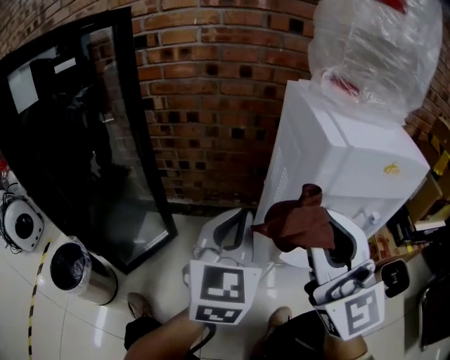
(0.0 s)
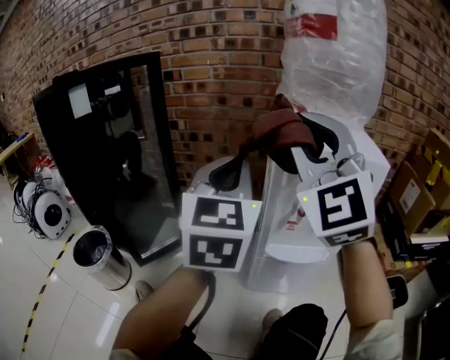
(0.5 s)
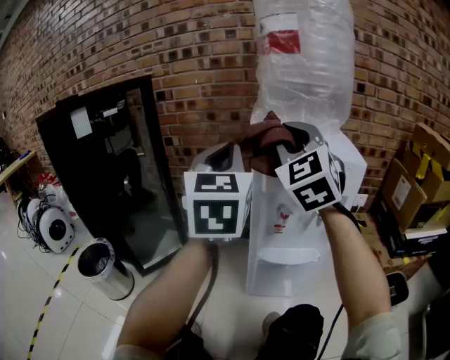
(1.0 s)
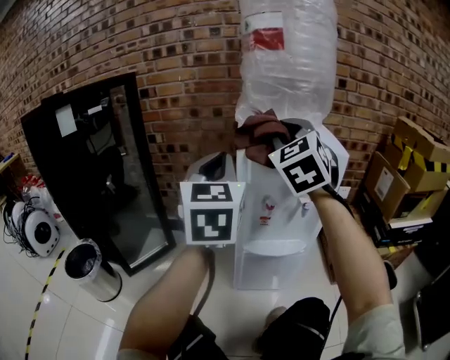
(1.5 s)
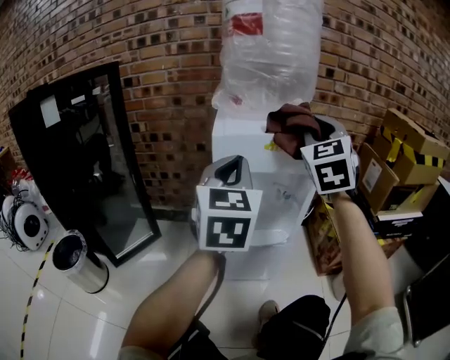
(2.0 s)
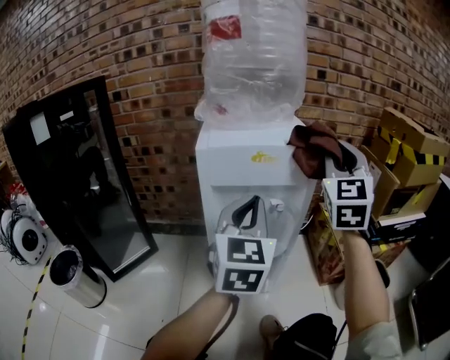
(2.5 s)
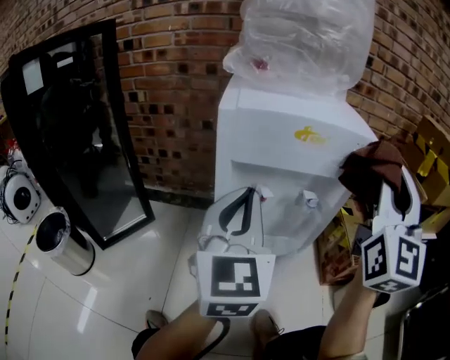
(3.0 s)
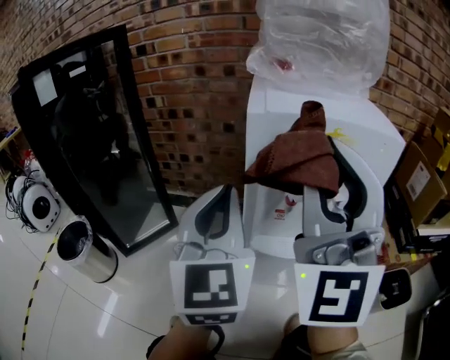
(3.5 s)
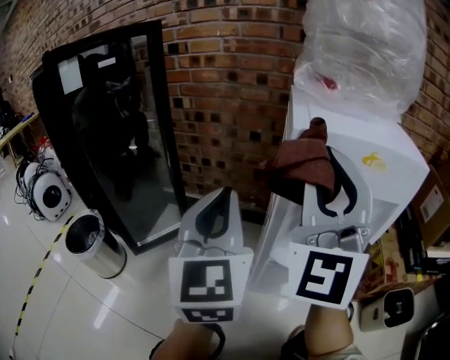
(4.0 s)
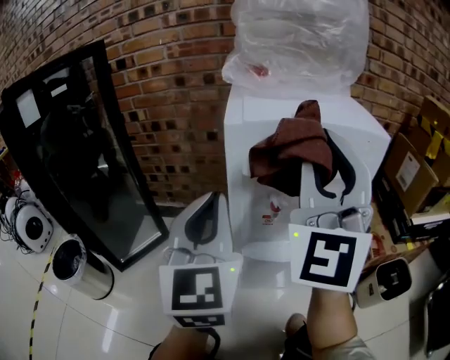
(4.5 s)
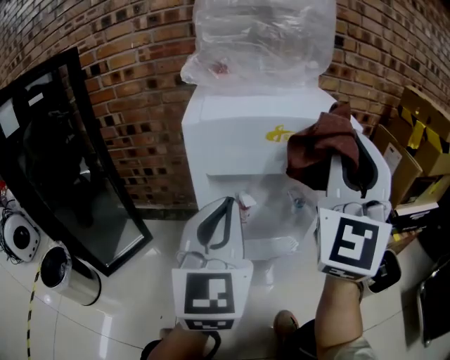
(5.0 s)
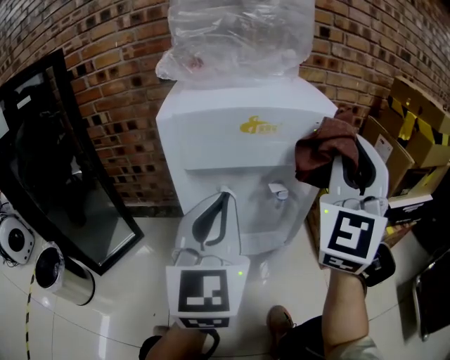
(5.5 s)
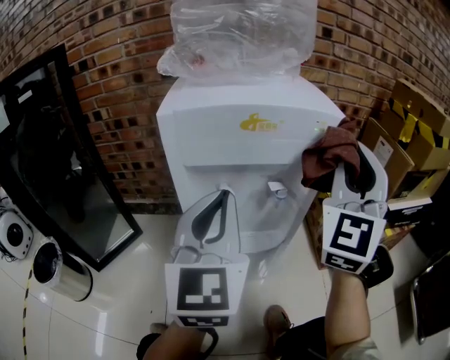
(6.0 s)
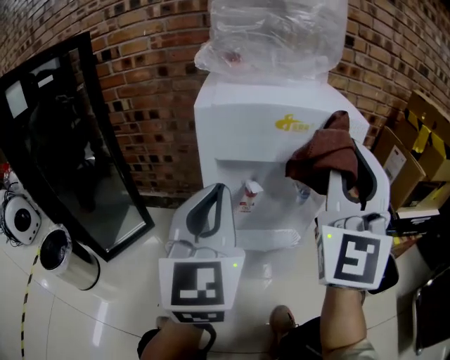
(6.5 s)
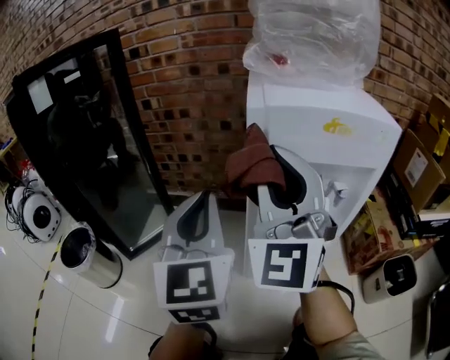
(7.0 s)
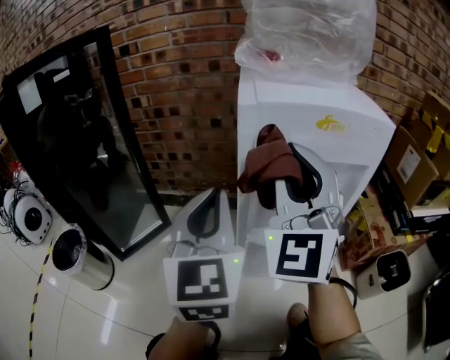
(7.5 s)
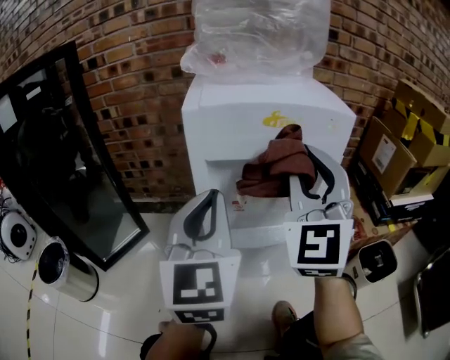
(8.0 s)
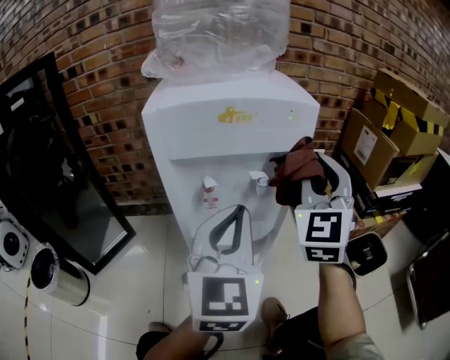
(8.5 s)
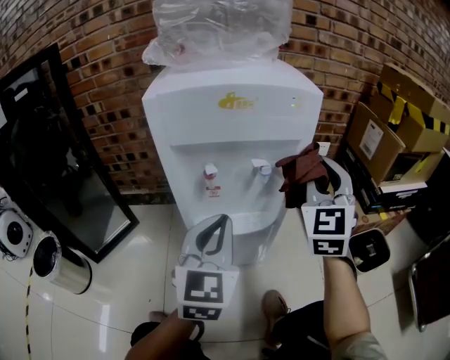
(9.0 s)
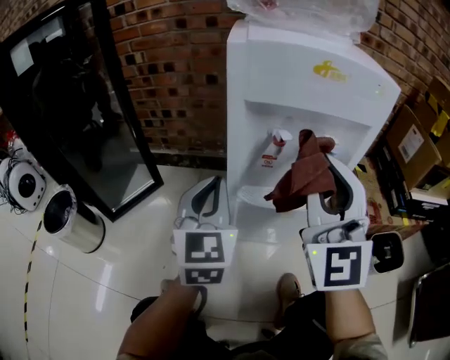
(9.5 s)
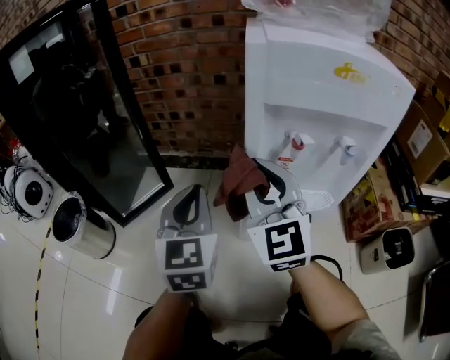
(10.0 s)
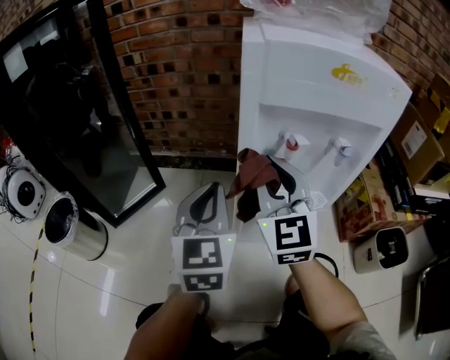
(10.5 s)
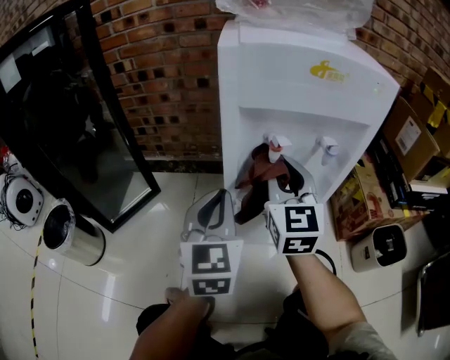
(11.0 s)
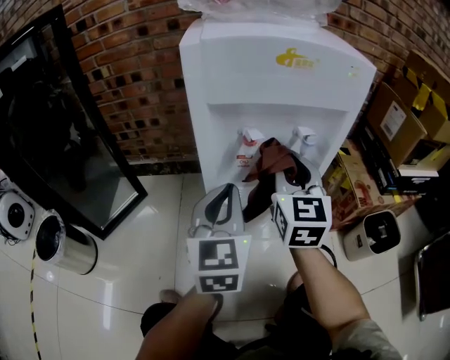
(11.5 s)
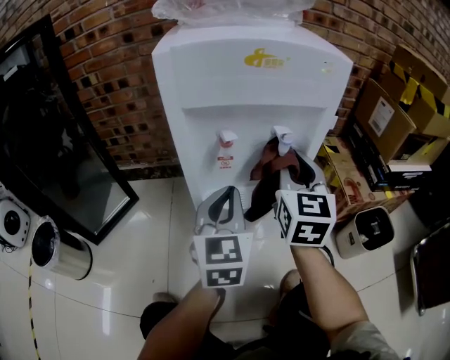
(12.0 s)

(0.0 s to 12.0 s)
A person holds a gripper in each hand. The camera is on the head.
0.0 s - 2.0 s: The right gripper goes approximately 25 cm to the right and upward, and rotates some 30 degrees. Meanwhile the left gripper travels upward, to the right and backward by some 20 cm.
2.0 s - 4.0 s: The left gripper shifts roughly 15 cm to the left and downward. The right gripper is displaced to the left by some 20 cm, and swivels roughly 30 degrees.
4.0 s - 6.0 s: Both grippers travel together to the right, approximately 20 cm. The right gripper swivels approximately 30 degrees.
6.0 s - 8.0 s: The left gripper goes to the left and returns, some 15 cm each way. Meanwhile the right gripper goes approximately 15 cm to the left.
8.0 s - 10.0 s: The right gripper ends up some 20 cm from where it was, and rotates roughly 30 degrees; the left gripper travels downward by some 15 cm.
10.0 s - 12.0 s: The grippers both shift to the right by some 20 cm. The right gripper changes its angle by some 30 degrees.

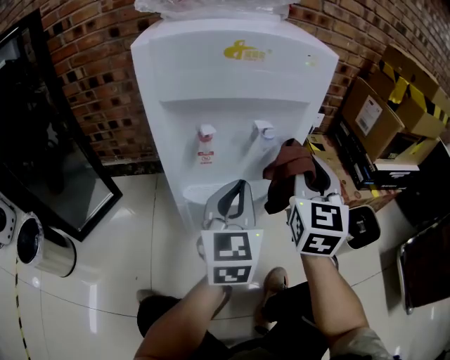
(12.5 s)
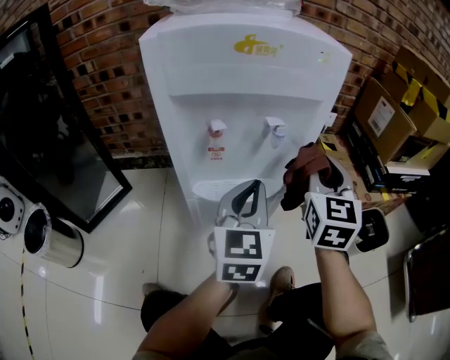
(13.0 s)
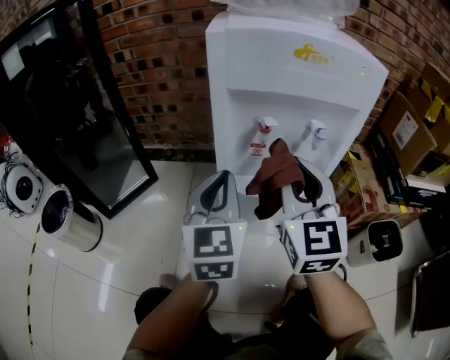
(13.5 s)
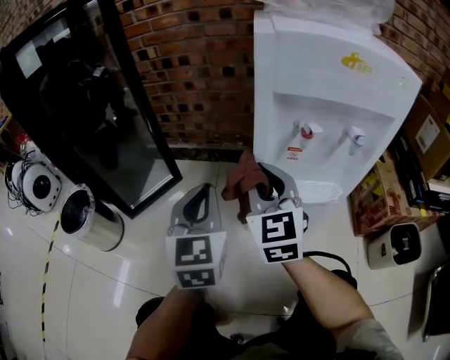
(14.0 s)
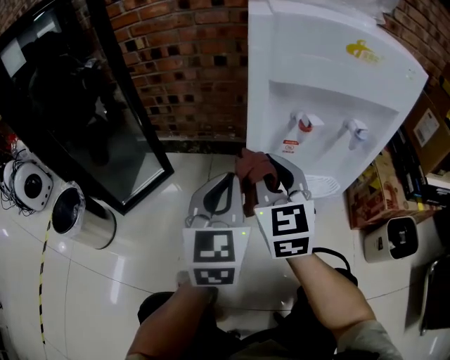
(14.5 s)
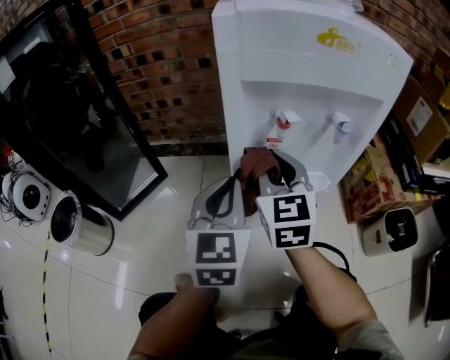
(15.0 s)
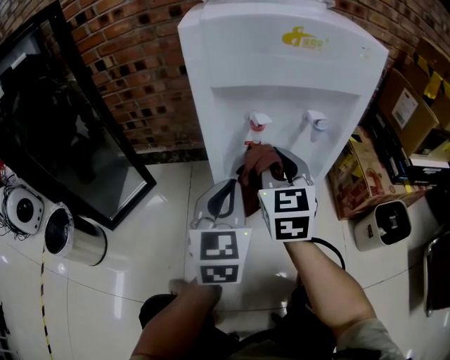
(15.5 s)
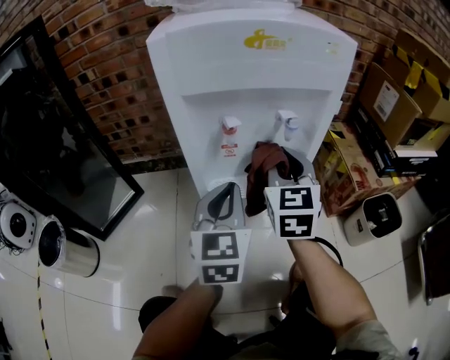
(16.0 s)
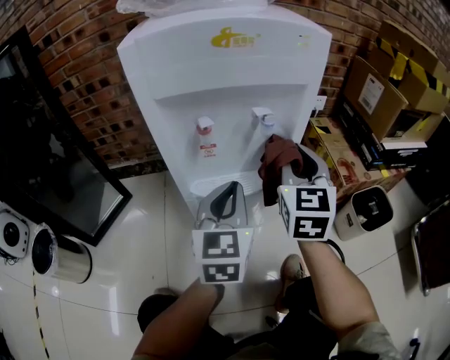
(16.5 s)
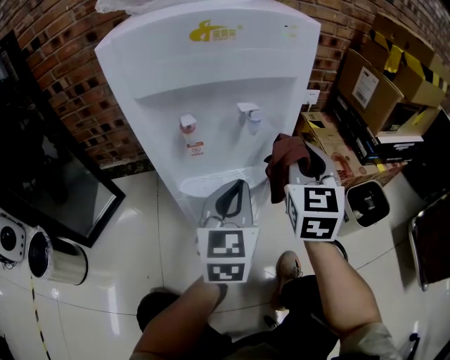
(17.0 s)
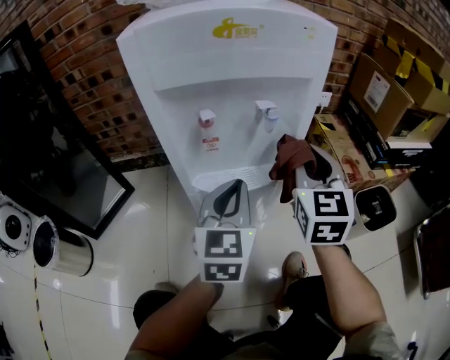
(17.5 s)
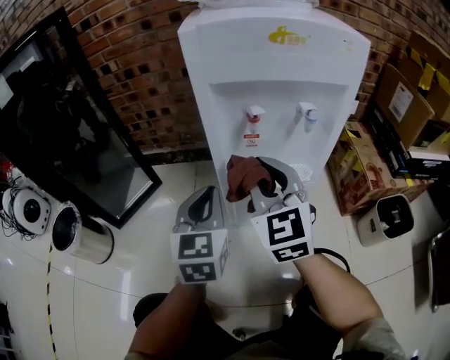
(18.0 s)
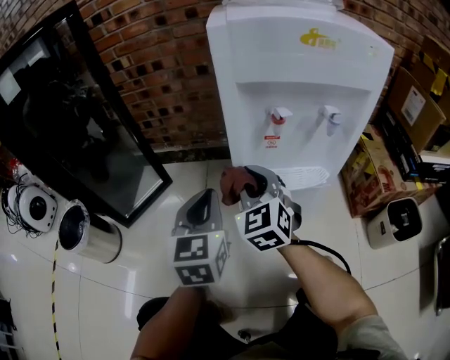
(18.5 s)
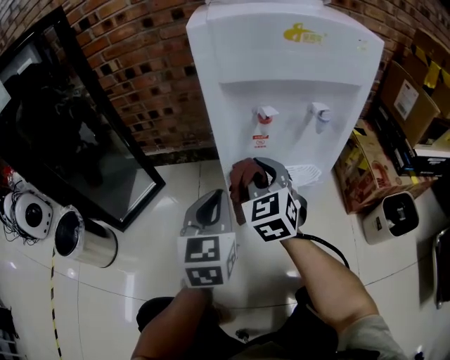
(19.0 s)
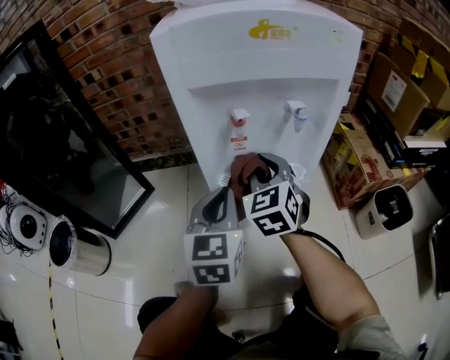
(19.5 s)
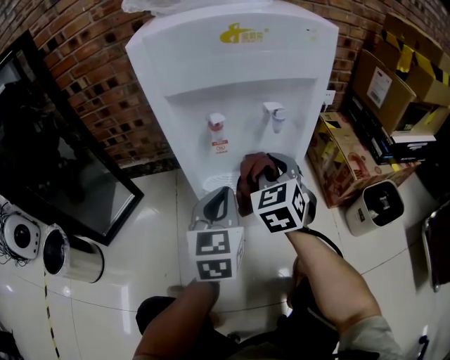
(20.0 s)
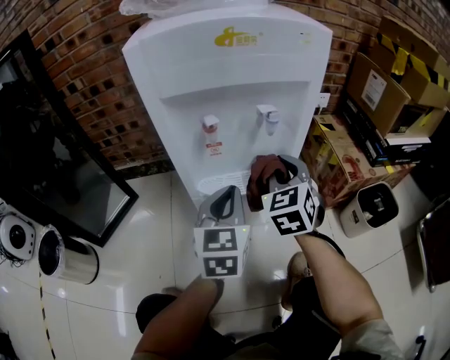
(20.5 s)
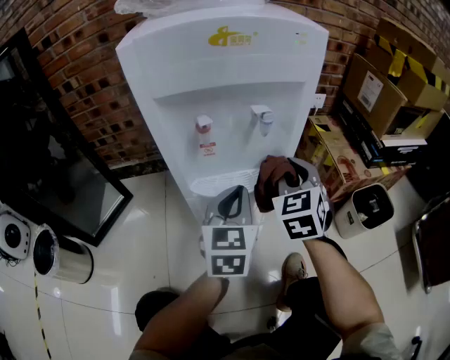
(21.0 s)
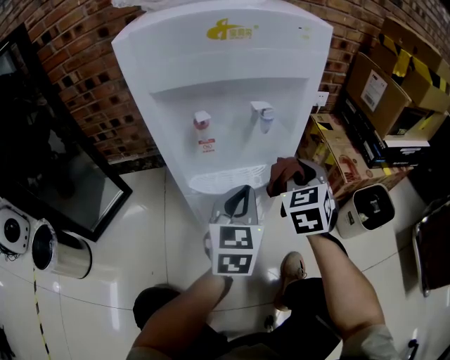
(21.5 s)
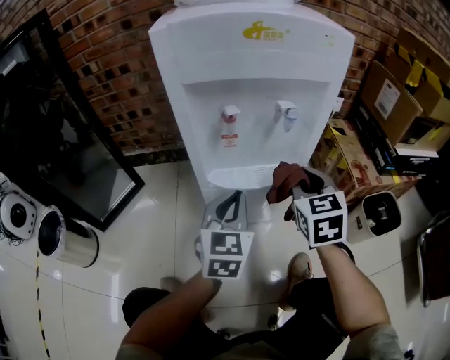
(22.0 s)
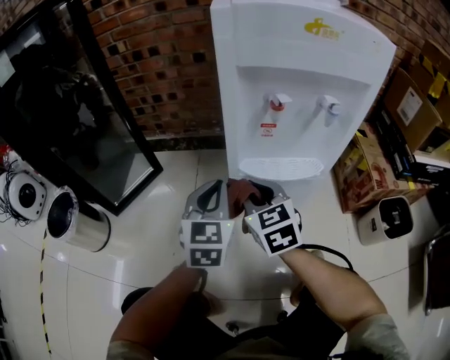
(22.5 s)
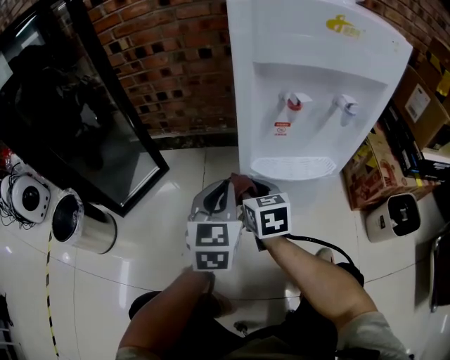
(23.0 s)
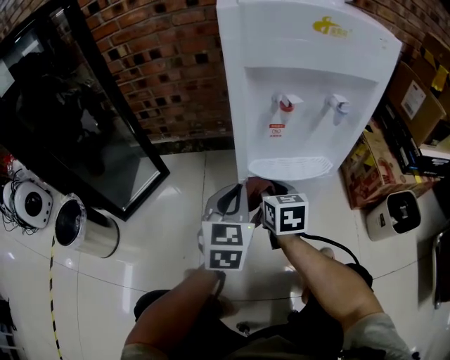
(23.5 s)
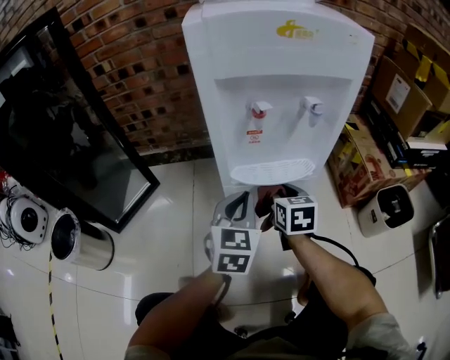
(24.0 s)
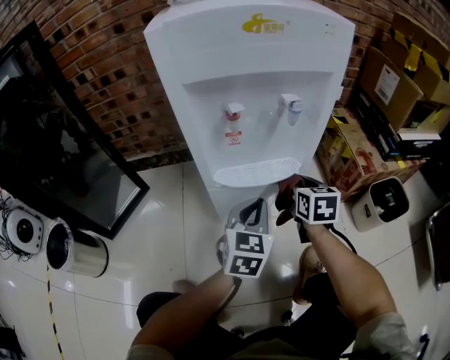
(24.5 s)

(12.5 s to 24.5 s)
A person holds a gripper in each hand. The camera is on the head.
12.5 s - 14.5 s: The left gripper shifts by roughly 20 cm; the right gripper shifts by some 25 cm, and changes its angle by about 30 degrees.
14.5 s - 16.5 s: The two grippers go some 20 cm to the right. The right gripper changes its angle by approximately 30 degrees.
16.5 s - 18.5 s: The grippers both shift to the left by approximately 20 cm. The right gripper changes its angle by approximately 30 degrees.
18.5 s - 20.5 s: Both grippers move to the right, roughly 20 cm. The right gripper changes its angle by about 20 degrees.
20.5 s - 22.5 s: The left gripper shifts by some 15 cm, while the right gripper changes place by some 20 cm, and turns by approximately 30 degrees.
22.5 s - 24.5 s: The two grippers go some 20 cm to the right. The right gripper rotates about 30 degrees.

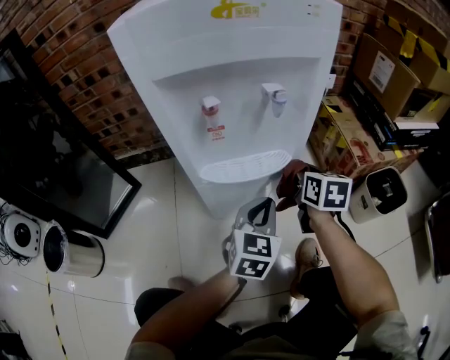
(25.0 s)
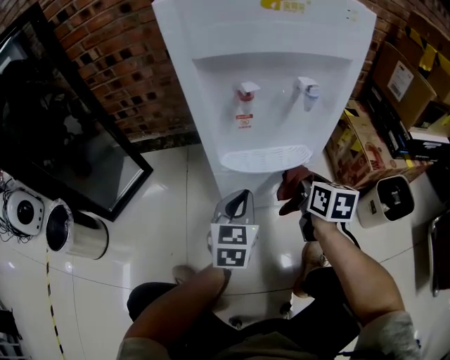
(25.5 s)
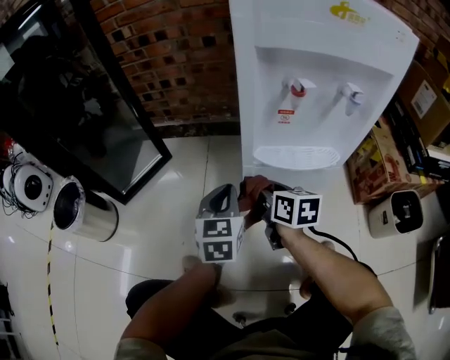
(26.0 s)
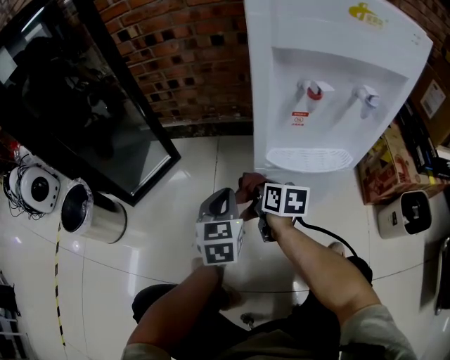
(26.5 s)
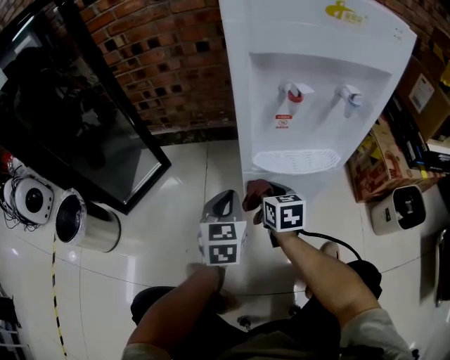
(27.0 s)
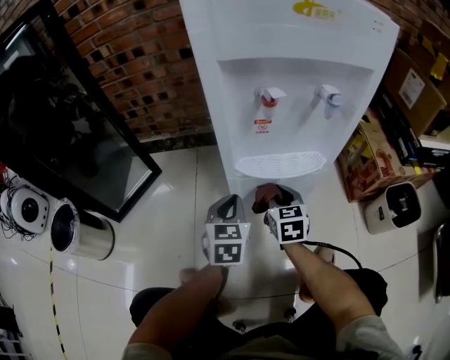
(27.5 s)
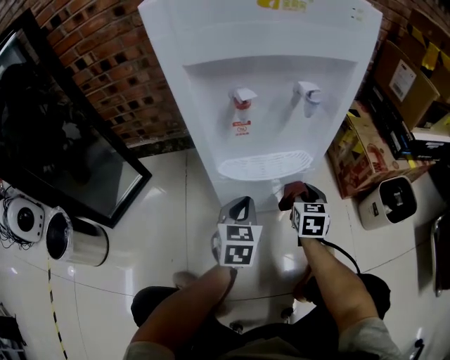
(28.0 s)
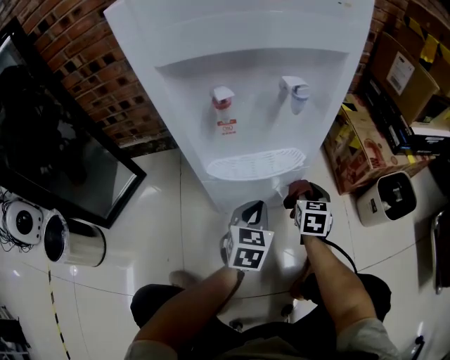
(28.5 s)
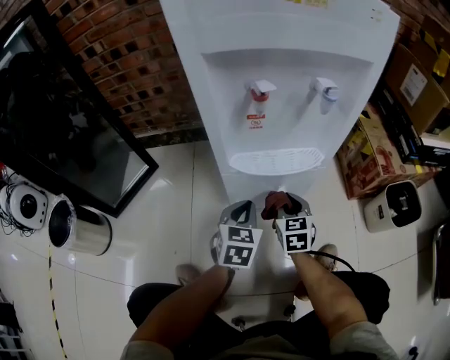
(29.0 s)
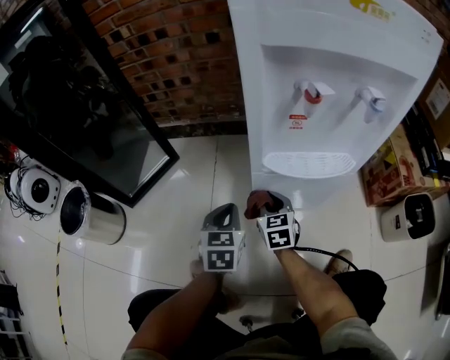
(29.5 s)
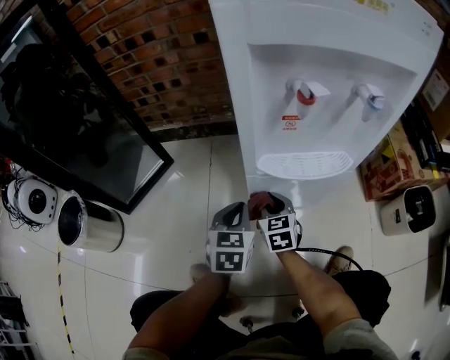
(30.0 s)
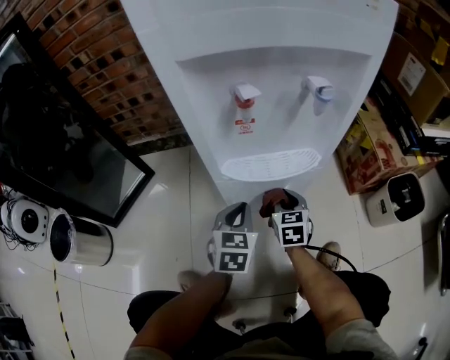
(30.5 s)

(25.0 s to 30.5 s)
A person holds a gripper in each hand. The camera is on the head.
25.0 s - 27.0 s: The left gripper ends up some 20 cm from where it was, and turns by about 30 degrees; the right gripper shifts by roughly 25 cm.
27.0 s - 28.5 s: The right gripper changes place by some 25 cm, and changes its angle by some 30 degrees; the left gripper shifts by some 20 cm.
